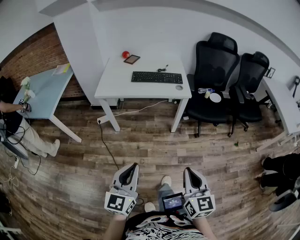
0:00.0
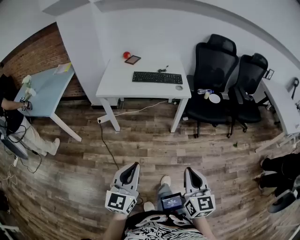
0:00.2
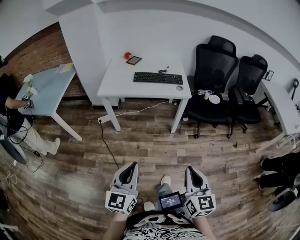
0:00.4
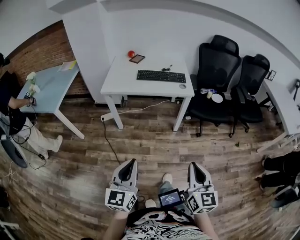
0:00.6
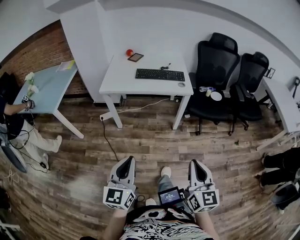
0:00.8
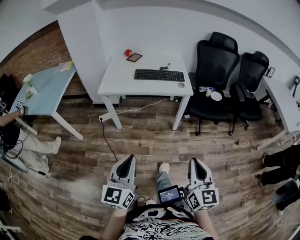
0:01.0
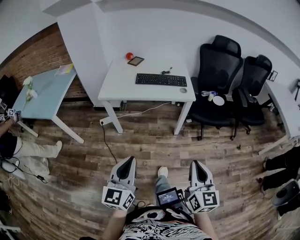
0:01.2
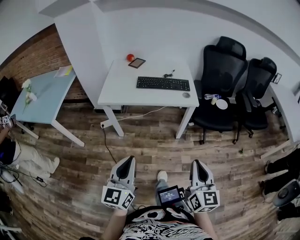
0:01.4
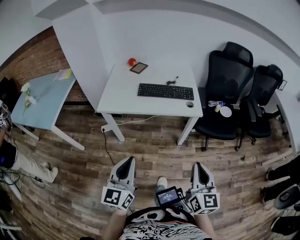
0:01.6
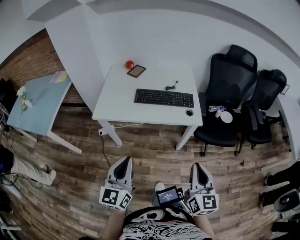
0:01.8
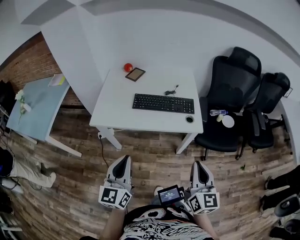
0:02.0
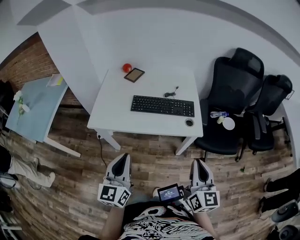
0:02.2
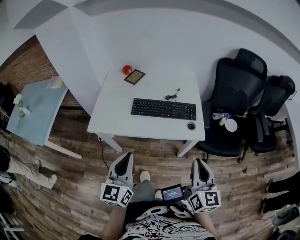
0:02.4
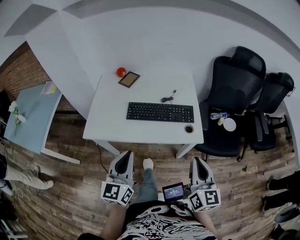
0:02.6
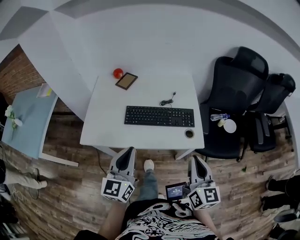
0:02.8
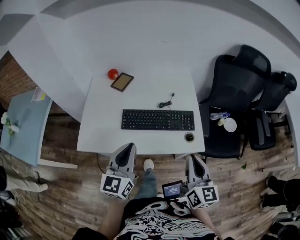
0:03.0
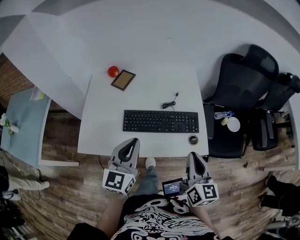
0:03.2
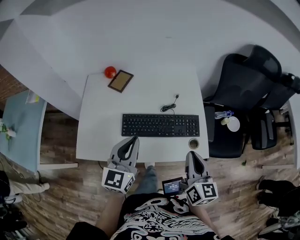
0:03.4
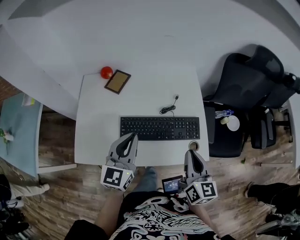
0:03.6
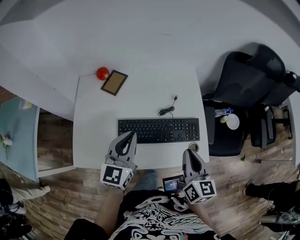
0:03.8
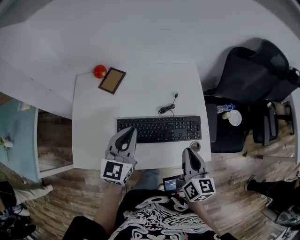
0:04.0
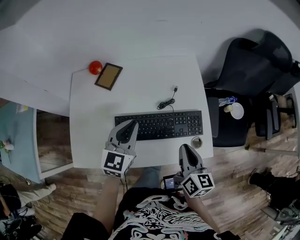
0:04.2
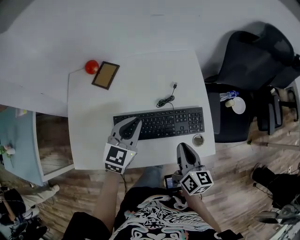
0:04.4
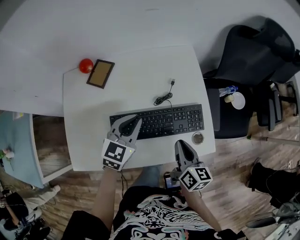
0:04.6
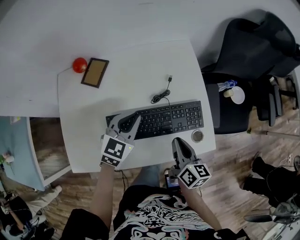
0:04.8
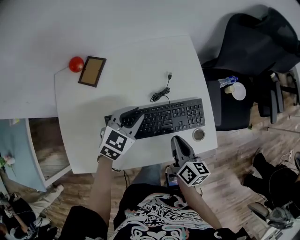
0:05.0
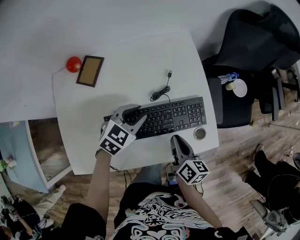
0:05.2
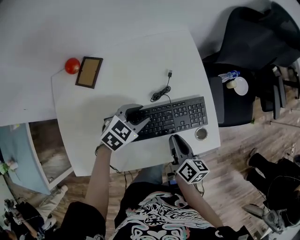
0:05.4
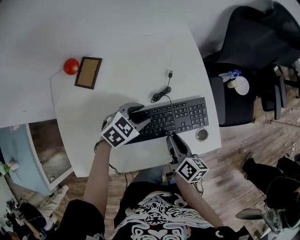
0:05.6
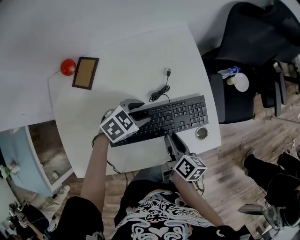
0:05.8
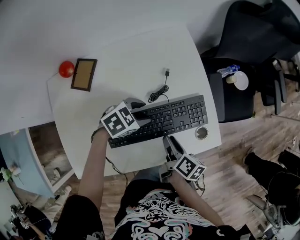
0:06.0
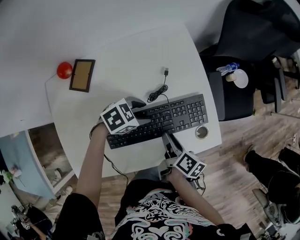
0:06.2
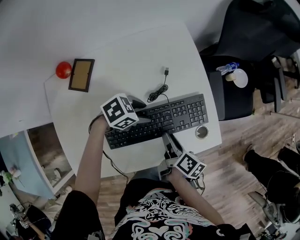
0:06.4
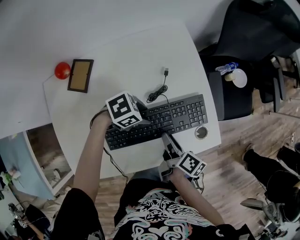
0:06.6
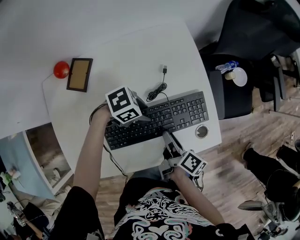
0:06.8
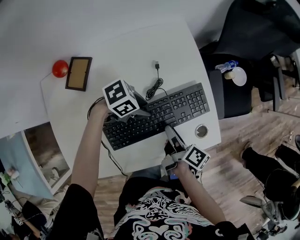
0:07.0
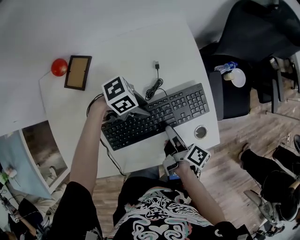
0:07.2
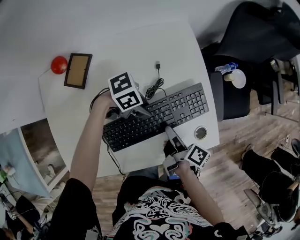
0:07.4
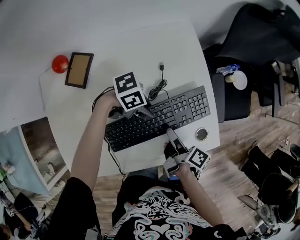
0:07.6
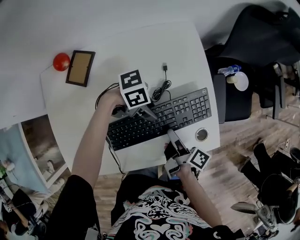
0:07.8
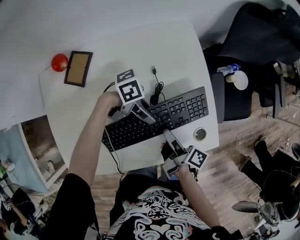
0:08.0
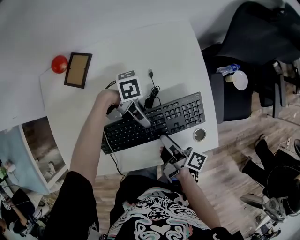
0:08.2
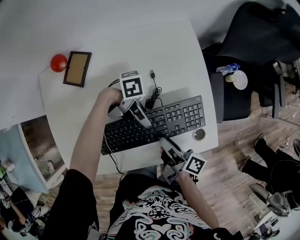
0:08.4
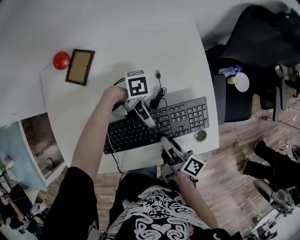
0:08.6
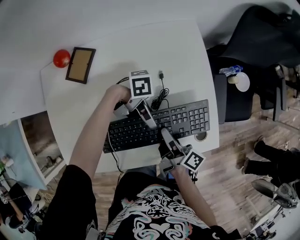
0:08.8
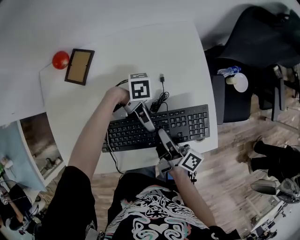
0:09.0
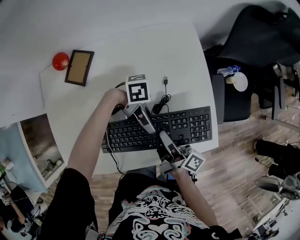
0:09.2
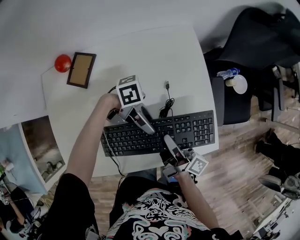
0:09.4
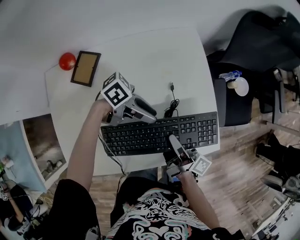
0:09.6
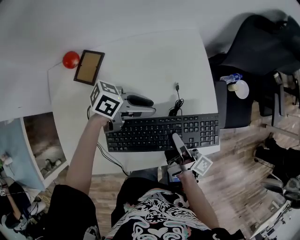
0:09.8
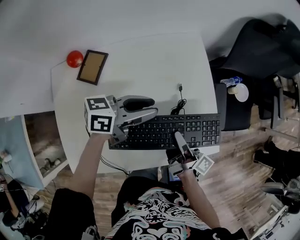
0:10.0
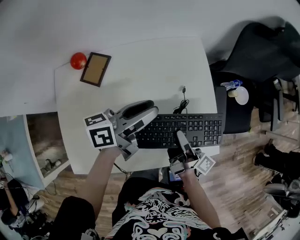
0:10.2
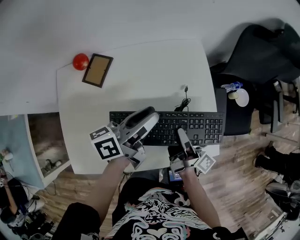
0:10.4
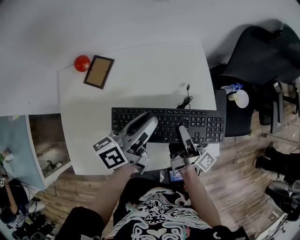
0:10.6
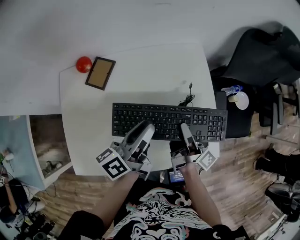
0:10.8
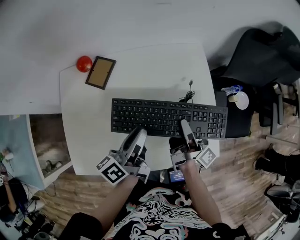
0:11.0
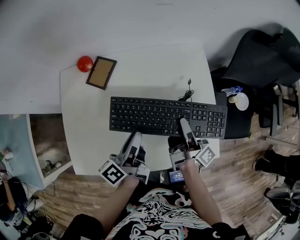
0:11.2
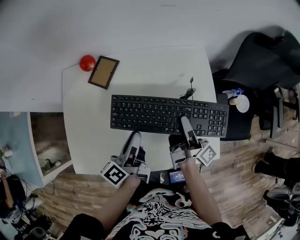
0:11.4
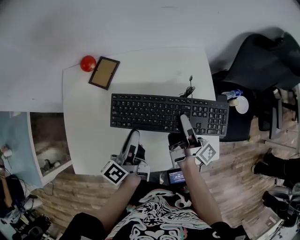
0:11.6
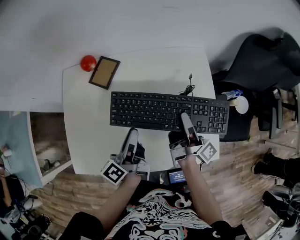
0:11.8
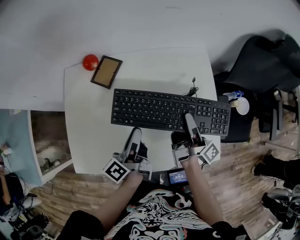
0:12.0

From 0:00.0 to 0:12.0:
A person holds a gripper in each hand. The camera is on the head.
From 0:00.0 to 0:01.6: Both grippers travel together forward, approximately 20 cm.
From 0:01.6 to 0:03.0: Both grippers move forward, about 40 cm.
From 0:03.0 to 0:04.4: The grippers both shift forward and downward by approximately 25 cm. The right gripper rotates approximately 20 degrees; the left gripper turns by approximately 30 degrees.
From 0:04.4 to 0:06.0: The grippers both shift downward by some 15 cm. The right gripper rotates roughly 40 degrees, and opens; the left gripper turns by roughly 60 degrees, and opens.
From 0:06.0 to 0:07.6: The right gripper turns by some 20 degrees; the left gripper swivels roughly 30 degrees.
From 0:07.6 to 0:09.0: The left gripper tips its fingers upward by some 30 degrees, and closes.
From 0:09.0 to 0:10.4: The left gripper is displaced upward by approximately 15 cm, and swivels about 110 degrees. The right gripper is displaced upward by approximately 5 cm.
From 0:10.4 to 0:12.0: The left gripper heads to the left, downward and backward, covering approximately 10 cm, and changes its angle by approximately 40 degrees; the right gripper is displaced forward by some 5 cm.

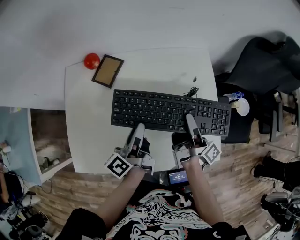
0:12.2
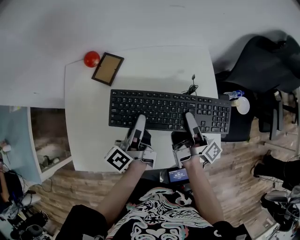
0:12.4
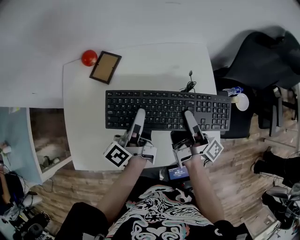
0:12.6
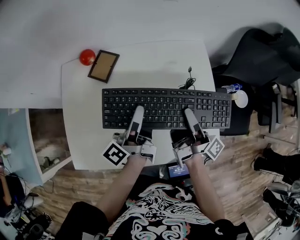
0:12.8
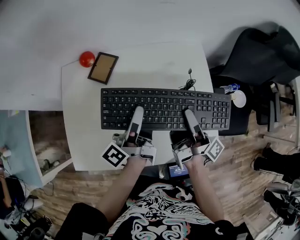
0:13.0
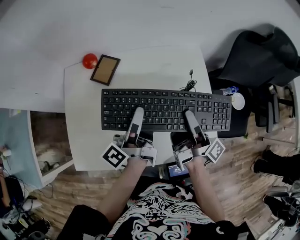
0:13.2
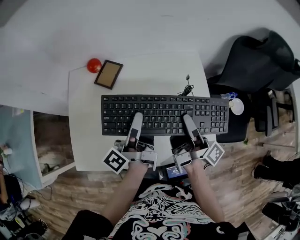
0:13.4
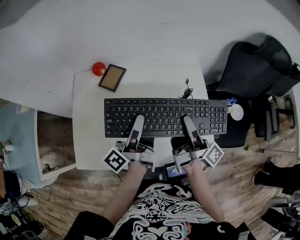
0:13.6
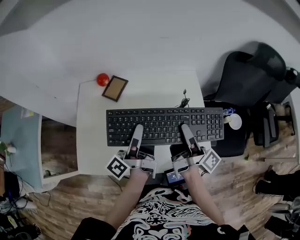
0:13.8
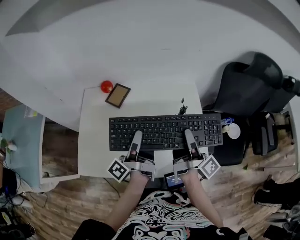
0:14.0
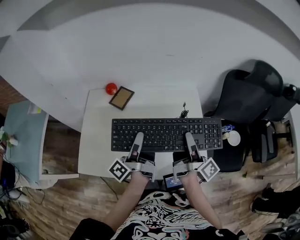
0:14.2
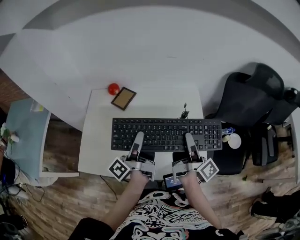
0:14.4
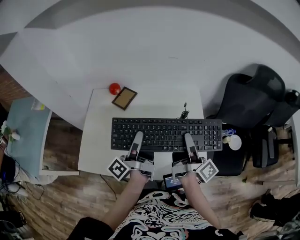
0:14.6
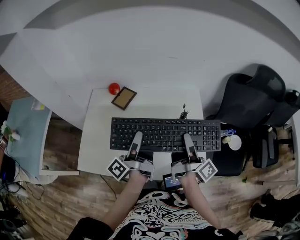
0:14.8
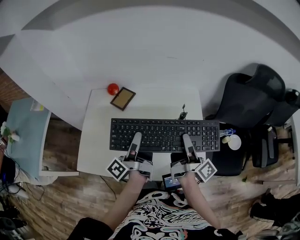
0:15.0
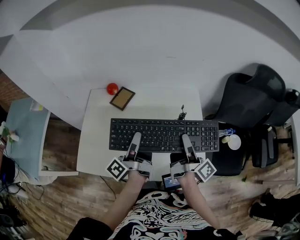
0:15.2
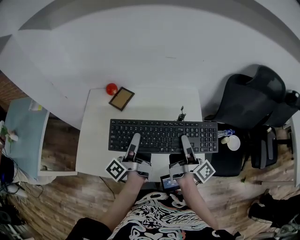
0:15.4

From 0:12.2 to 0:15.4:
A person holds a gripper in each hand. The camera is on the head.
From 0:12.2 to 0:13.8: The grippers both shift upward by roughly 10 cm. The left gripper rotates about 20 degrees.
From 0:13.8 to 0:15.4: There are only small adjustments of the grippers.

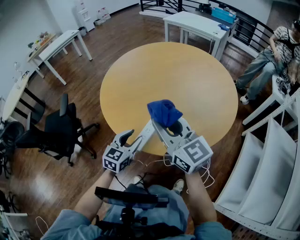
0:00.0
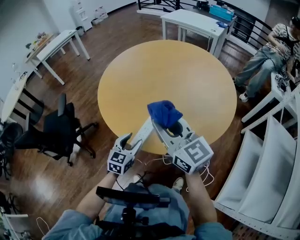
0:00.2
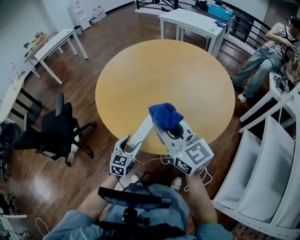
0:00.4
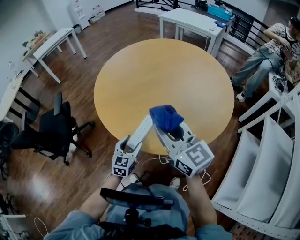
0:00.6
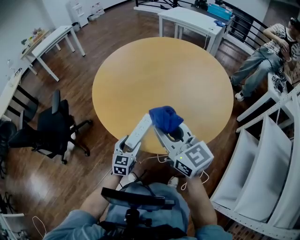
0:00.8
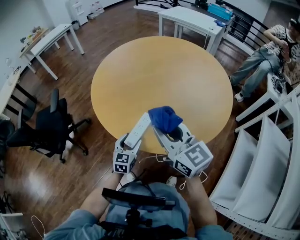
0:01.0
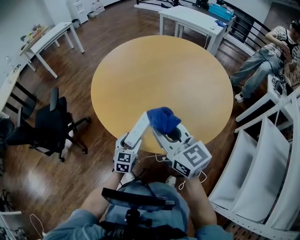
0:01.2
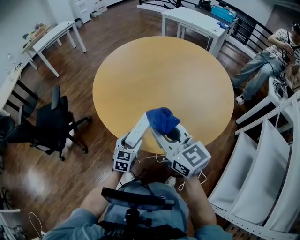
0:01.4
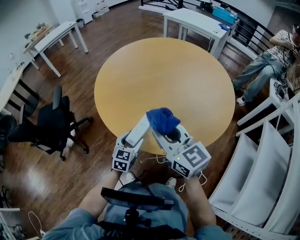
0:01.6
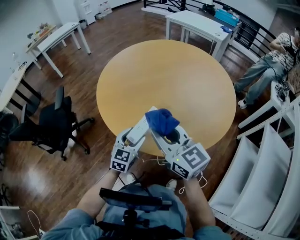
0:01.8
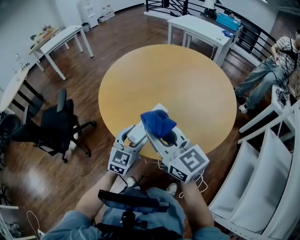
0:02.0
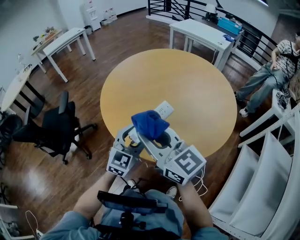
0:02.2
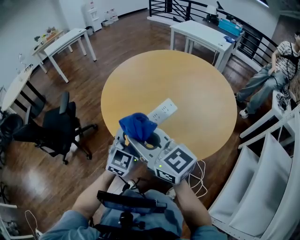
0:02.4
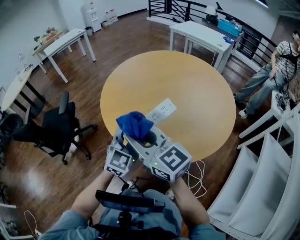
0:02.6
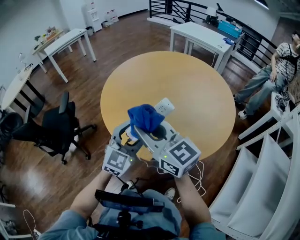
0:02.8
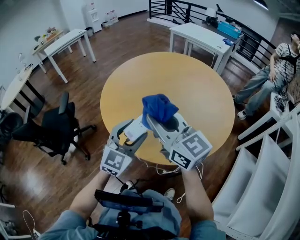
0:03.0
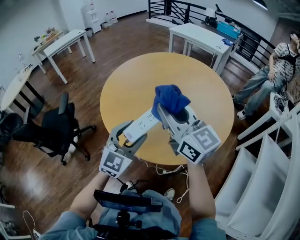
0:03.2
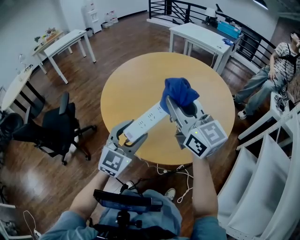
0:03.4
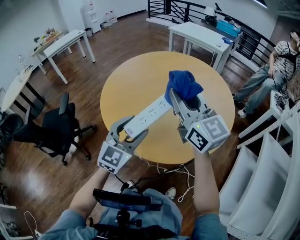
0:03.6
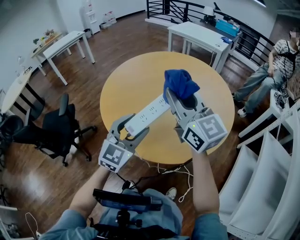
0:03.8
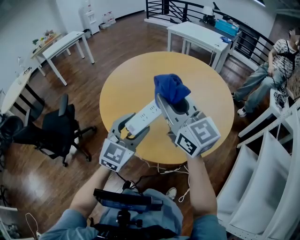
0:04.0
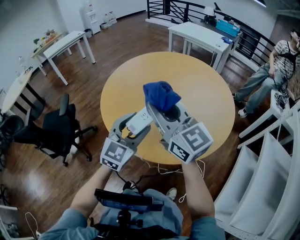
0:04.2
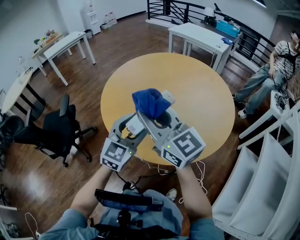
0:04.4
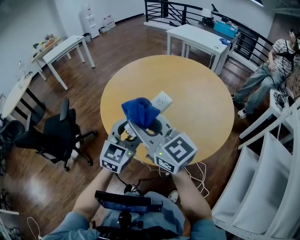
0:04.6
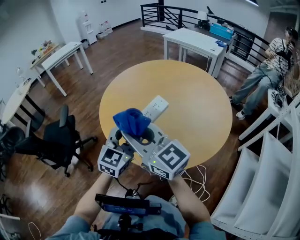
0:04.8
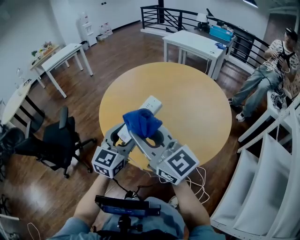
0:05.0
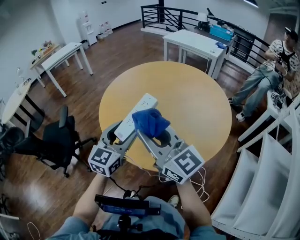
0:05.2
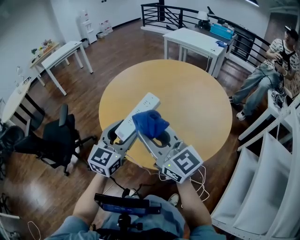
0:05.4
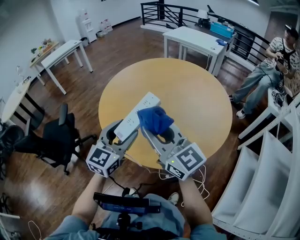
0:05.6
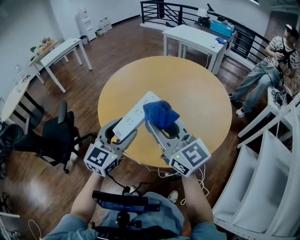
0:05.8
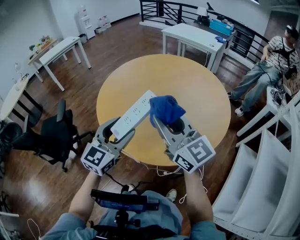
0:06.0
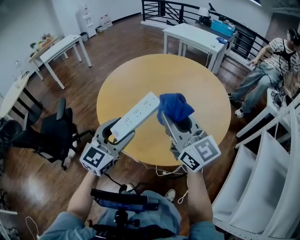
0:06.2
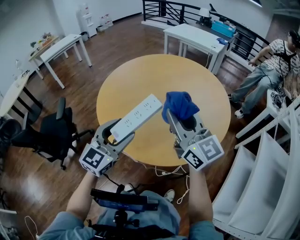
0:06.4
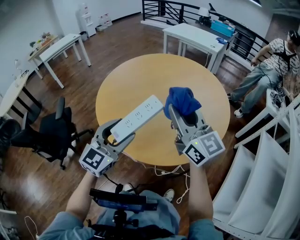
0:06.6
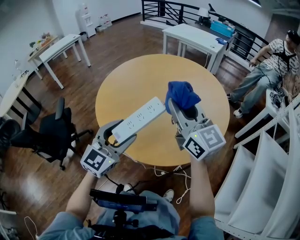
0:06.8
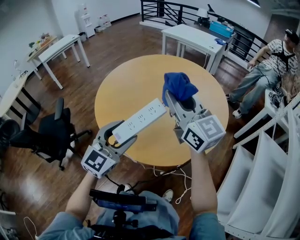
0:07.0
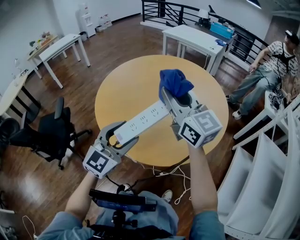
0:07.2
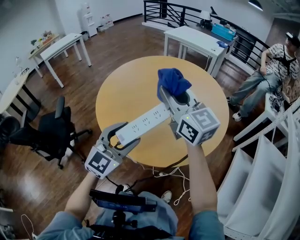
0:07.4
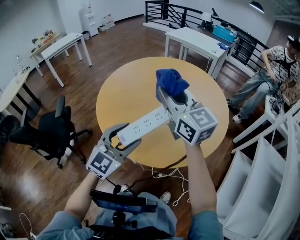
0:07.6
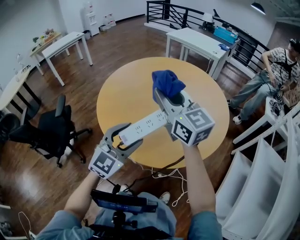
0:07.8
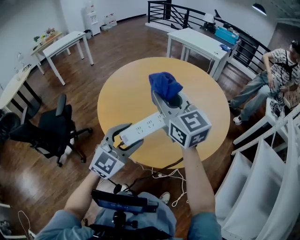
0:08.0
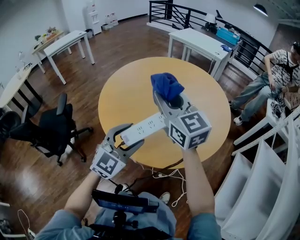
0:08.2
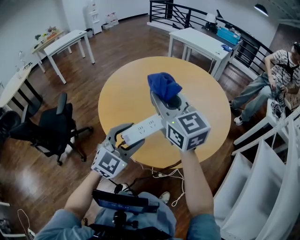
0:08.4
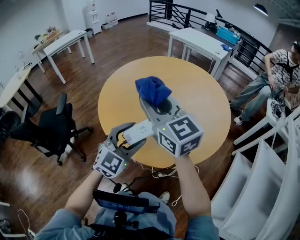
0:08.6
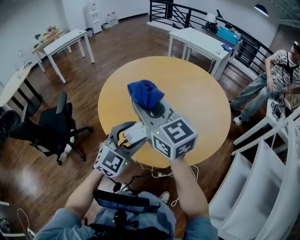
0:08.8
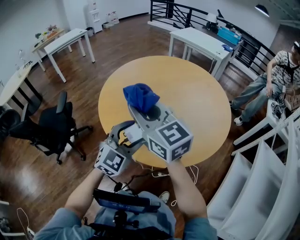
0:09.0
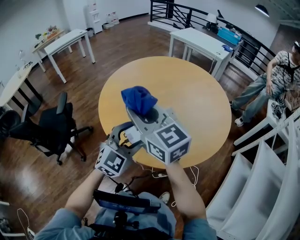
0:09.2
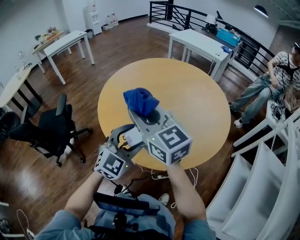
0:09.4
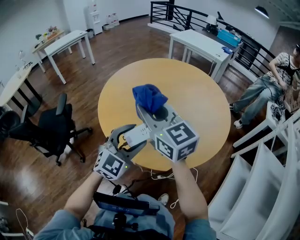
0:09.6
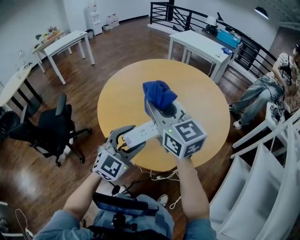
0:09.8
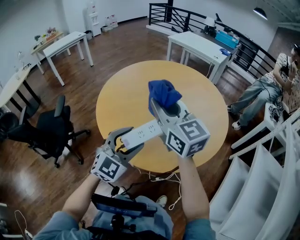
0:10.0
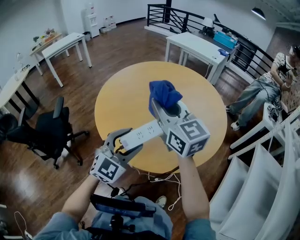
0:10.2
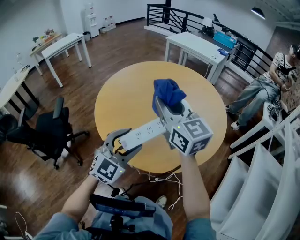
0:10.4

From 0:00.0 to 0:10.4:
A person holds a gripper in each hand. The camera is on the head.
From 0:00.0 to 0:01.4: The left gripper travels downward by about 10 cm.
From 0:01.4 to 0:03.0: The left gripper heads upward, covering about 25 cm, and rotates roughly 30 degrees. The right gripper moves upward, some 10 cm.
From 0:03.0 to 0:04.4: The right gripper travels to the right and back again, roughly 5 cm each way.
From 0:04.4 to 0:06.0: The right gripper is displaced to the right by approximately 5 cm.
From 0:06.0 to 0:07.4: The right gripper heads forward, covering approximately 10 cm.
From 0:07.4 to 0:09.0: The right gripper goes about 10 cm to the left.
From 0:09.0 to 0:10.4: The right gripper moves to the right, about 10 cm.
